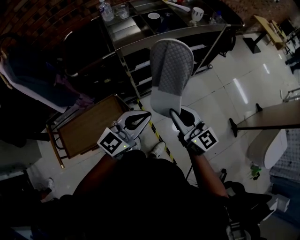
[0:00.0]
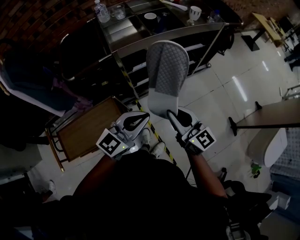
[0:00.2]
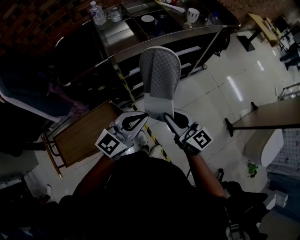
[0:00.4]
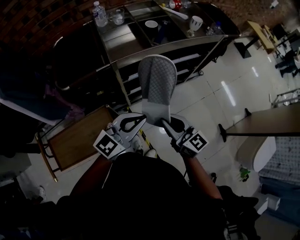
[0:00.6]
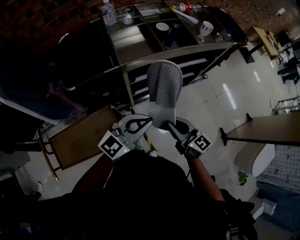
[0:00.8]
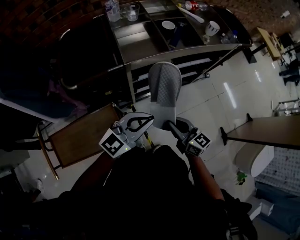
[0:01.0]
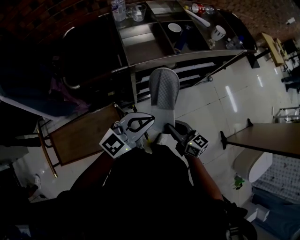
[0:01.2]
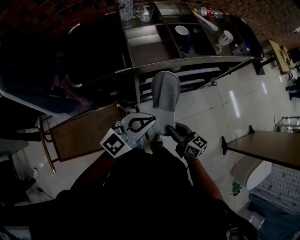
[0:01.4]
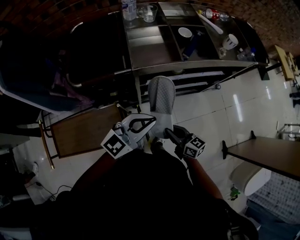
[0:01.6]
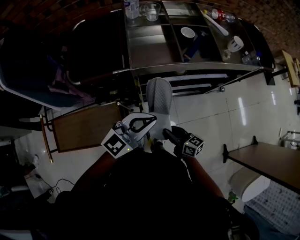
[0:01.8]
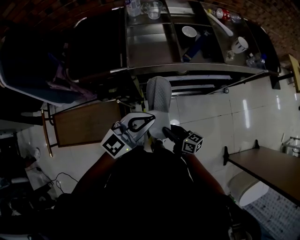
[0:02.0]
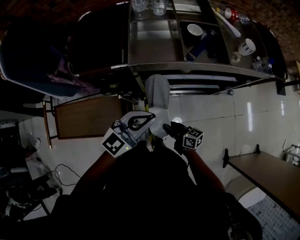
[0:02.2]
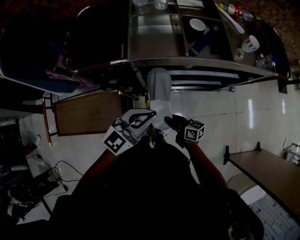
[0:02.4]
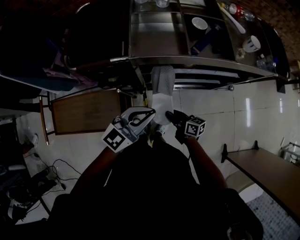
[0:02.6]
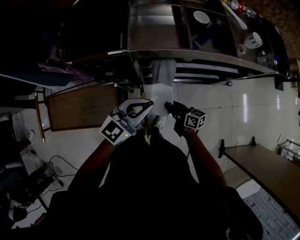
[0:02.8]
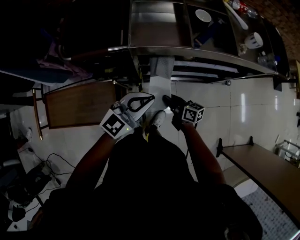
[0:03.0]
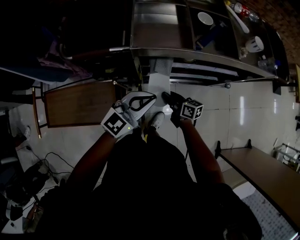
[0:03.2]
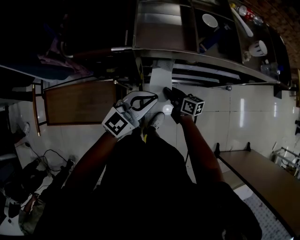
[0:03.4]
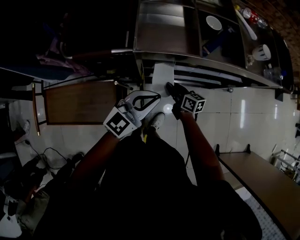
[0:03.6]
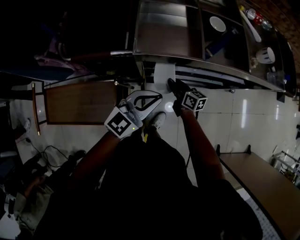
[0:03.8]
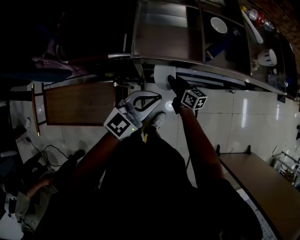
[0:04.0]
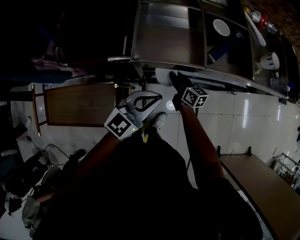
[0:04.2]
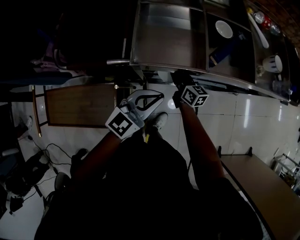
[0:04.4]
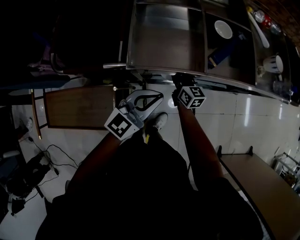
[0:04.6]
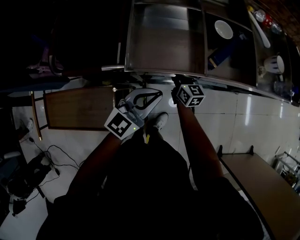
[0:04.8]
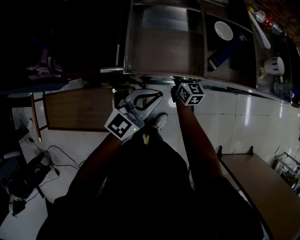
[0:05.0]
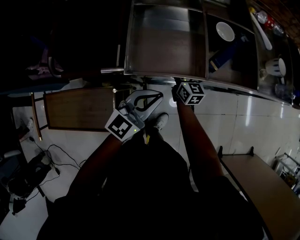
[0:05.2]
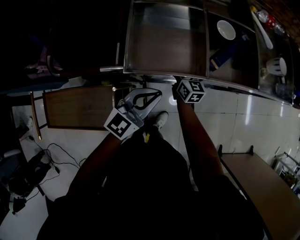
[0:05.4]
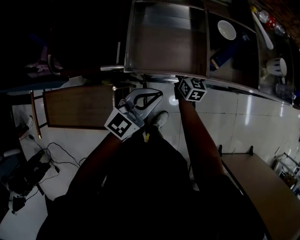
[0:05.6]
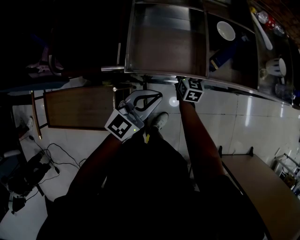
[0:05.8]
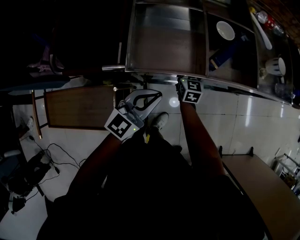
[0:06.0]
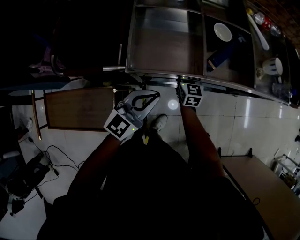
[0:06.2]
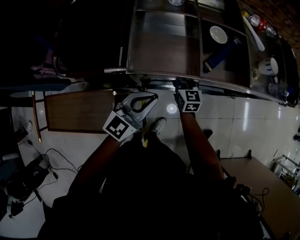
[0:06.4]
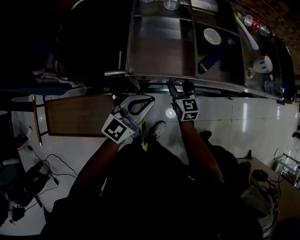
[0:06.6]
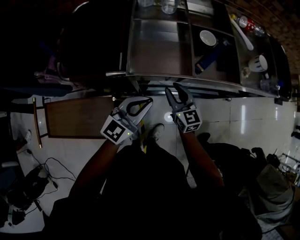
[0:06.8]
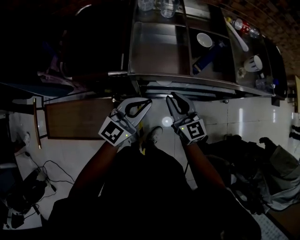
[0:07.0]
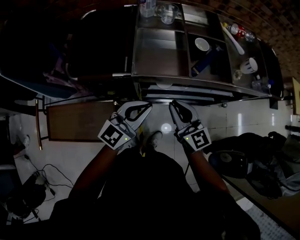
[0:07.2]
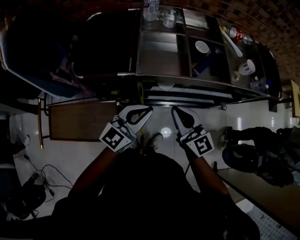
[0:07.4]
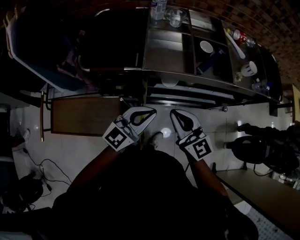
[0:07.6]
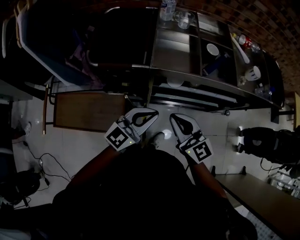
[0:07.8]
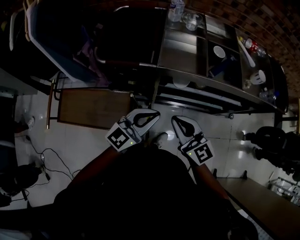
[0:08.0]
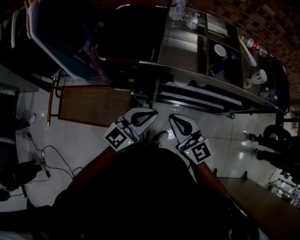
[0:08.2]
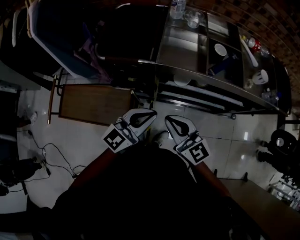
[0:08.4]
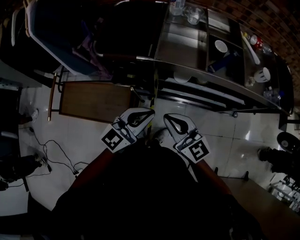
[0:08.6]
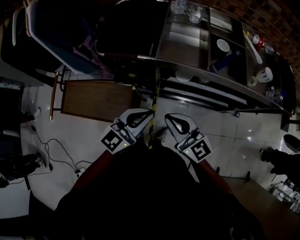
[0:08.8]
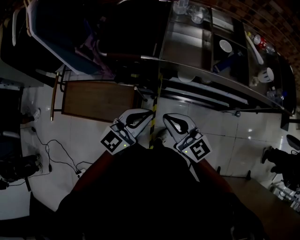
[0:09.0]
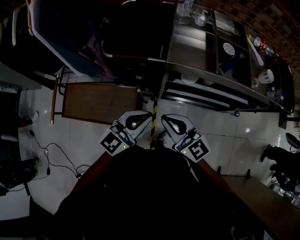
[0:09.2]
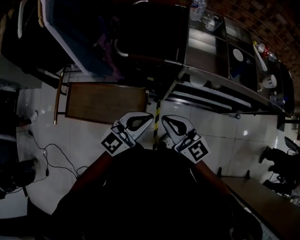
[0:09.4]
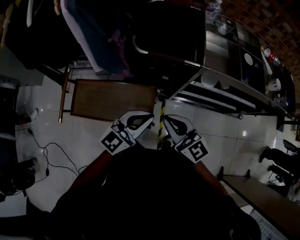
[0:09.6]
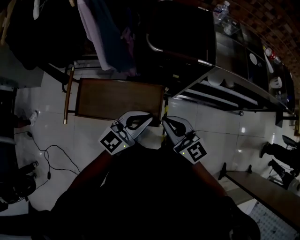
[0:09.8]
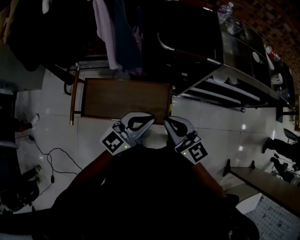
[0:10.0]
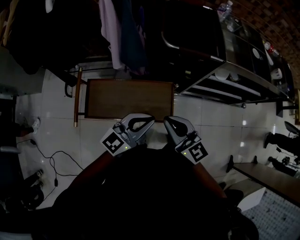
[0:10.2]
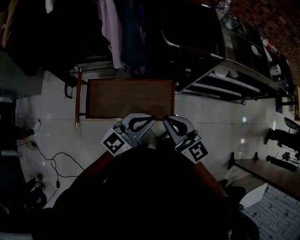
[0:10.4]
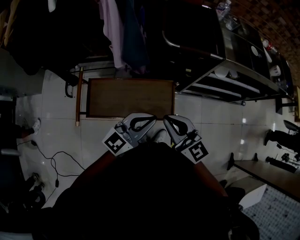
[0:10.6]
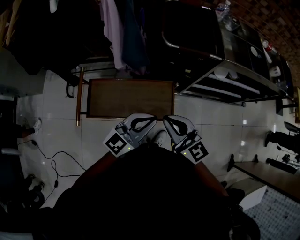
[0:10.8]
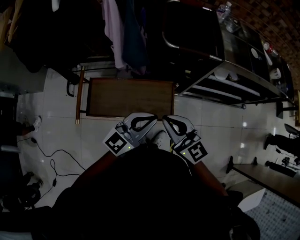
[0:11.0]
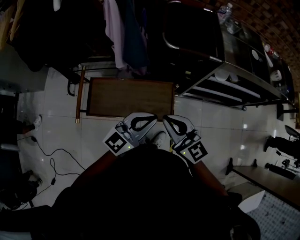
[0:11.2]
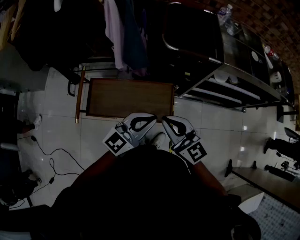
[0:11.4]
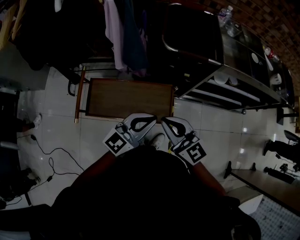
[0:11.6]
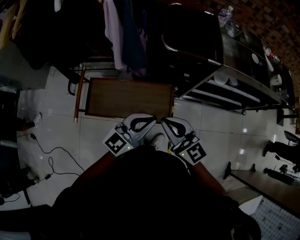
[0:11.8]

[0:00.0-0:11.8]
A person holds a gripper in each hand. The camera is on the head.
0:00.0 to 0:01.4: The left gripper heads forward and to the left, covering about 15 cm, while the right gripper moves downward and forward, about 20 cm, and turns by some 30 degrees.
0:01.4 to 0:03.0: The left gripper moves downward and forward, roughly 10 cm. Meanwhile the right gripper shifts some 15 cm downward and forward, and swivels some 20 degrees.
0:03.0 to 0:04.4: The right gripper shifts some 20 cm forward; the left gripper travels forward by some 10 cm.
0:04.4 to 0:06.0: The right gripper shifts approximately 5 cm forward, turns by about 30 degrees, and opens up.
0:06.0 to 0:07.4: The right gripper travels upward and backward by some 35 cm, rotates some 30 degrees, and closes. Meanwhile the left gripper is displaced upward and backward by approximately 15 cm.
0:07.4 to 0:08.8: The left gripper moves backward, some 5 cm, while the right gripper goes roughly 10 cm backward and to the left, and turns by about 20 degrees.
0:08.8 to 0:10.4: The grippers both shift to the left by approximately 35 cm.
0:10.4 to 0:11.8: The grippers make only small movements.

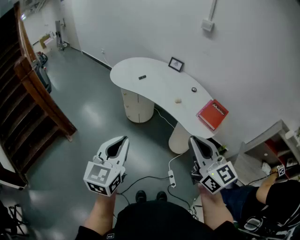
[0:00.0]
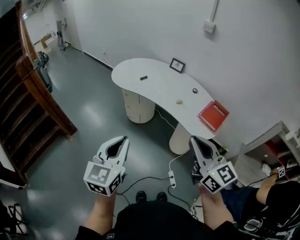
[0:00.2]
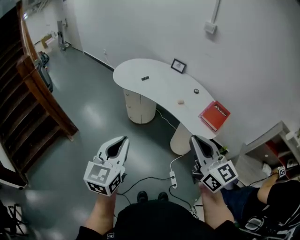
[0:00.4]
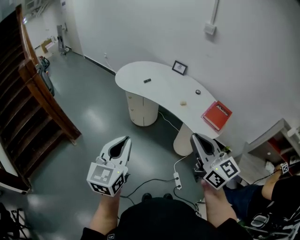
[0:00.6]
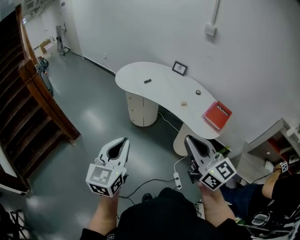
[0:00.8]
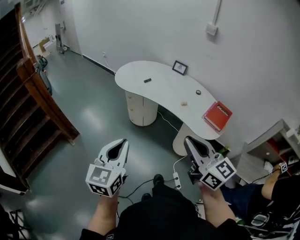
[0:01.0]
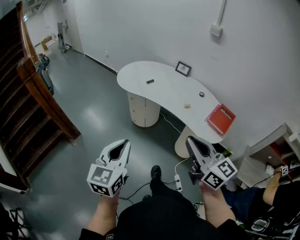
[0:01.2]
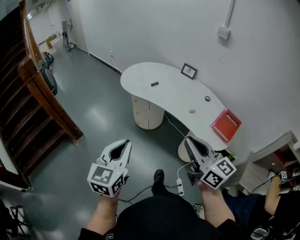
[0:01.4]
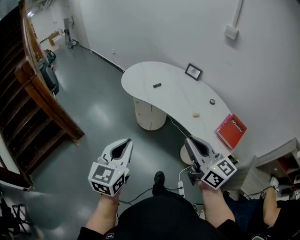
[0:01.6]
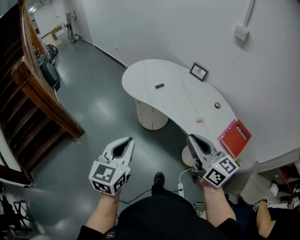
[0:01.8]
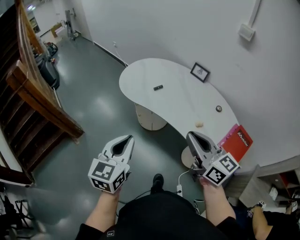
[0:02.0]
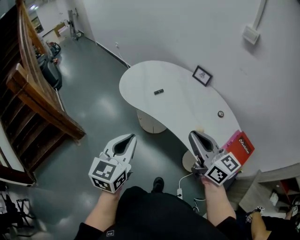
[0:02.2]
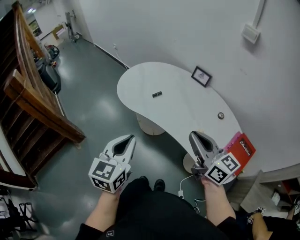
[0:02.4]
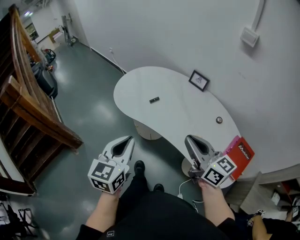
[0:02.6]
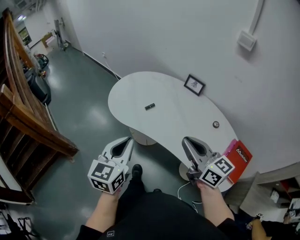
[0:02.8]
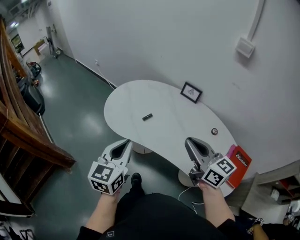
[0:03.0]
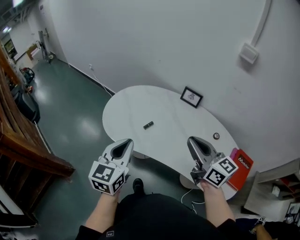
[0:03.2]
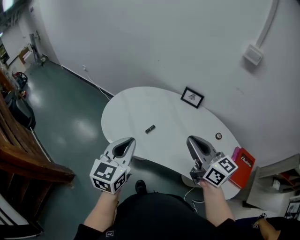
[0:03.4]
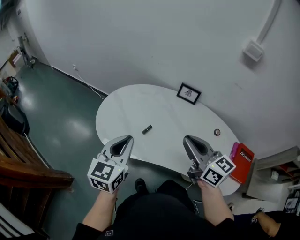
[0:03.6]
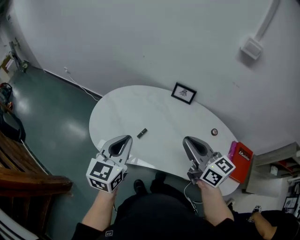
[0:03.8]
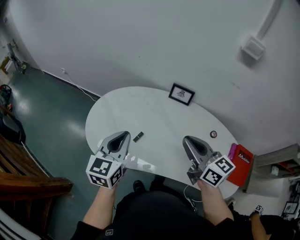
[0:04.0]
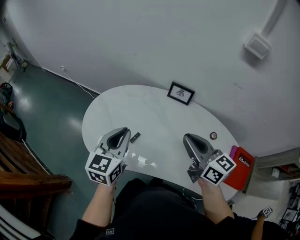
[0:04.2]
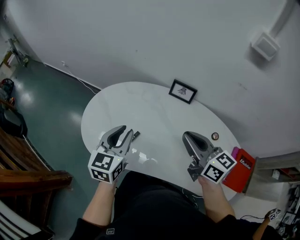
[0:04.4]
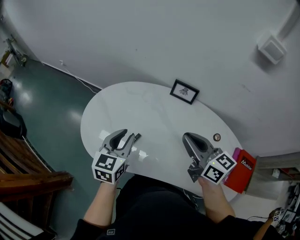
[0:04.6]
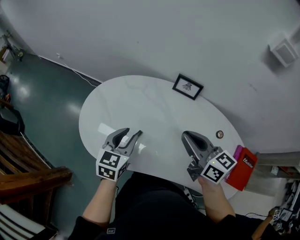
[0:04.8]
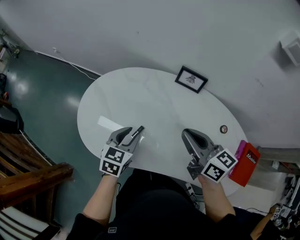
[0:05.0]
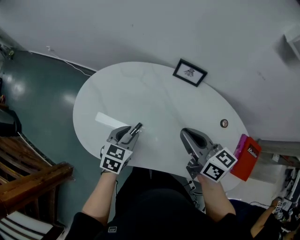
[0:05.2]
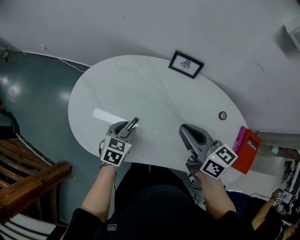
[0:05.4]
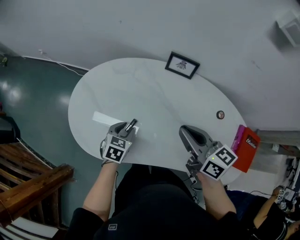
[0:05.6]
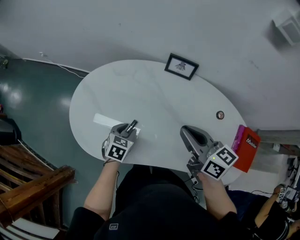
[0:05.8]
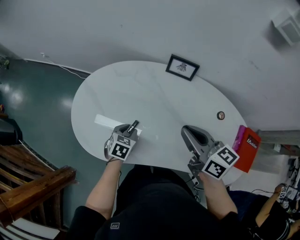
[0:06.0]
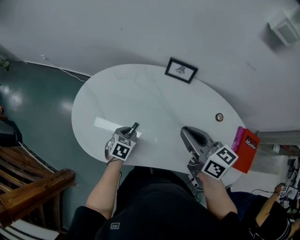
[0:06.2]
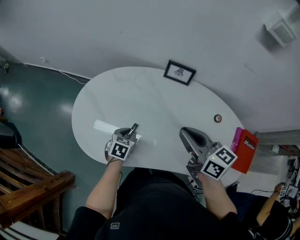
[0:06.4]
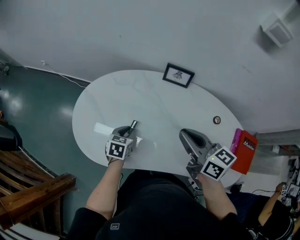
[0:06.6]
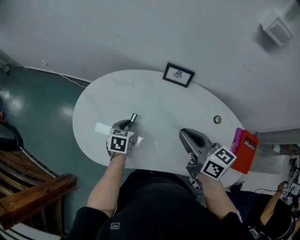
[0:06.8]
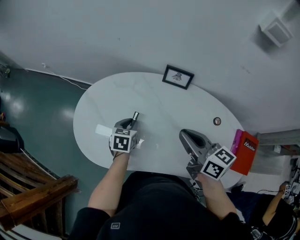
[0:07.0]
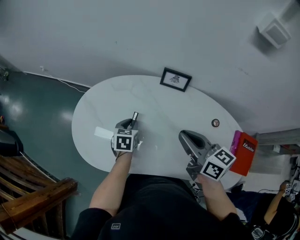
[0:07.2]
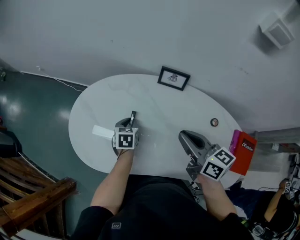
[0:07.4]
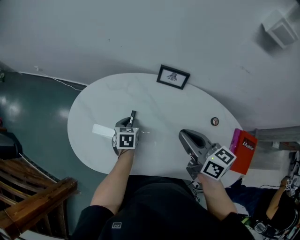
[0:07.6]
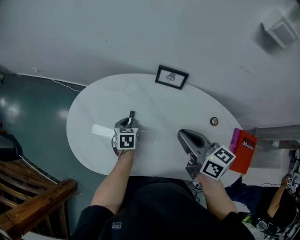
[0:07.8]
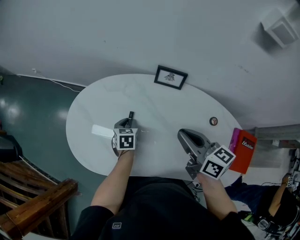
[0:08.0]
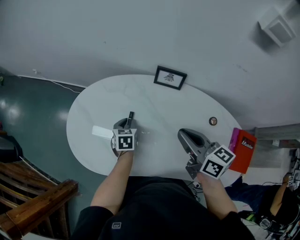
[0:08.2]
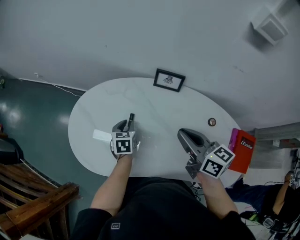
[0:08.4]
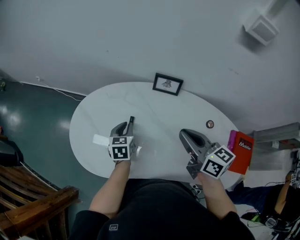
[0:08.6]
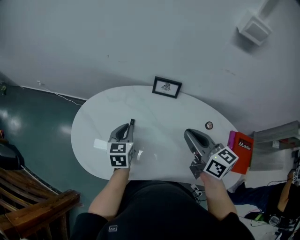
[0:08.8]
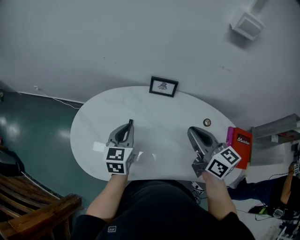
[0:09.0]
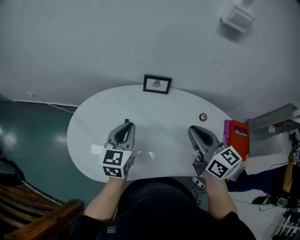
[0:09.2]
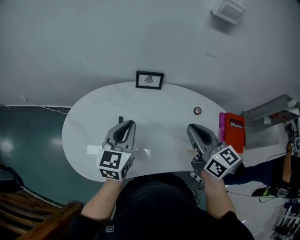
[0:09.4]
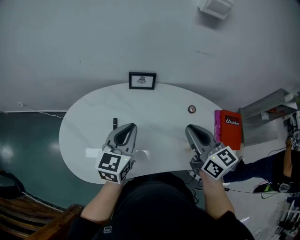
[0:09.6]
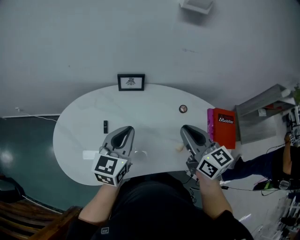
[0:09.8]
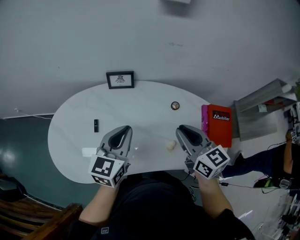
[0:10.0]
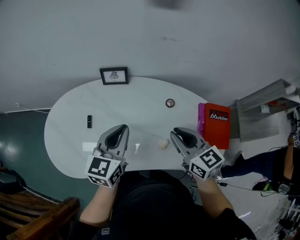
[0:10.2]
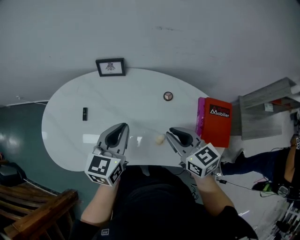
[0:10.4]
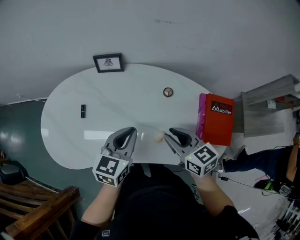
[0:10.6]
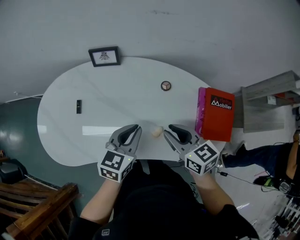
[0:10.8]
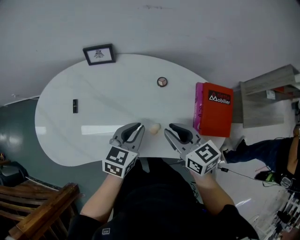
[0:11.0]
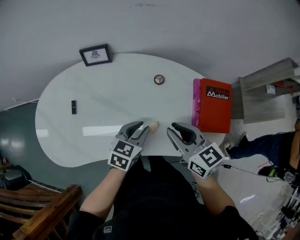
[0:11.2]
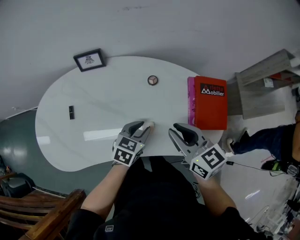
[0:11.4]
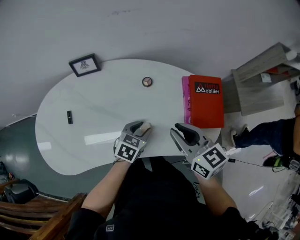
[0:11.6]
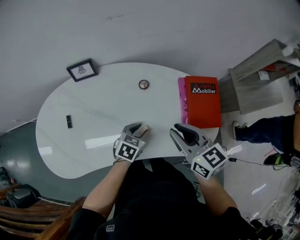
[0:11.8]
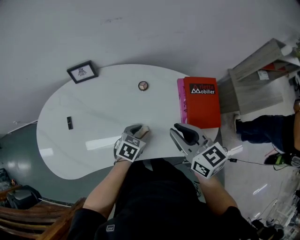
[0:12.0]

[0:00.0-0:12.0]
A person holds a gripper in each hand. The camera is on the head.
0:00.0 to 0:01.6: The two grippers go about 15 cm forward.
0:01.6 to 0:03.0: The grippers both shift forward by some 30 cm.
0:03.0 to 0:04.4: The two grippers go roughly 25 cm forward. The left gripper opens up.
0:04.4 to 0:06.0: The left gripper goes some 25 cm downward, and tips its fingers downward by some 40 degrees. The right gripper goes about 5 cm downward.
0:06.0 to 0:07.6: The left gripper travels forward by roughly 10 cm.
0:07.6 to 0:09.0: The left gripper travels upward by about 20 cm, and swivels about 30 degrees, while the right gripper shifts some 5 cm upward.
0:09.0 to 0:10.4: The right gripper heads to the right, downward and backward, covering approximately 20 cm; the left gripper travels to the right by roughly 25 cm.
0:10.4 to 0:12.0: The left gripper heads downward and to the right, covering about 25 cm, angles its fingers downward, by approximately 30 degrees, and opens up. The right gripper shifts some 10 cm to the right.
